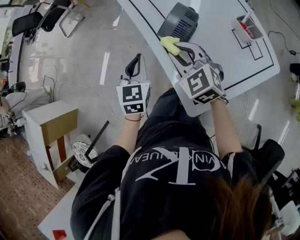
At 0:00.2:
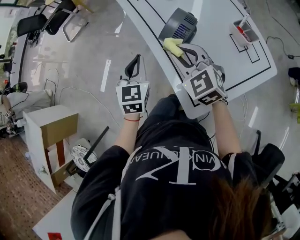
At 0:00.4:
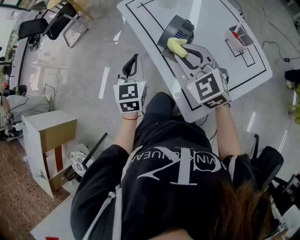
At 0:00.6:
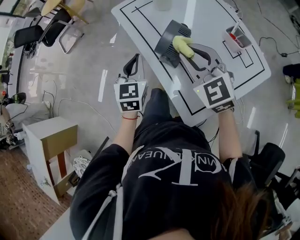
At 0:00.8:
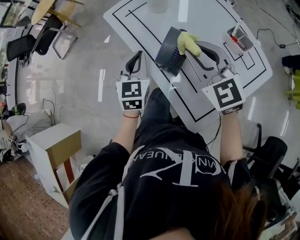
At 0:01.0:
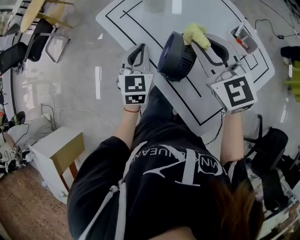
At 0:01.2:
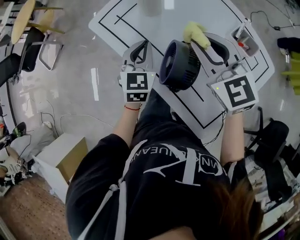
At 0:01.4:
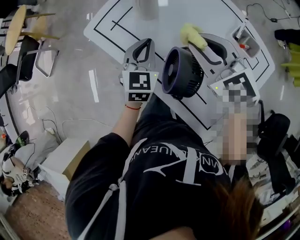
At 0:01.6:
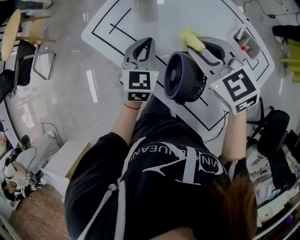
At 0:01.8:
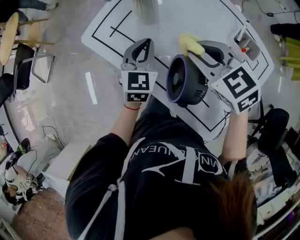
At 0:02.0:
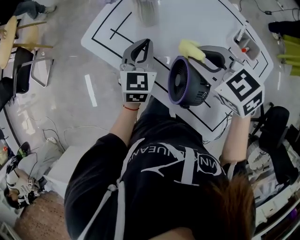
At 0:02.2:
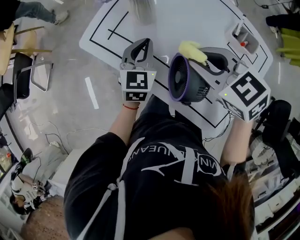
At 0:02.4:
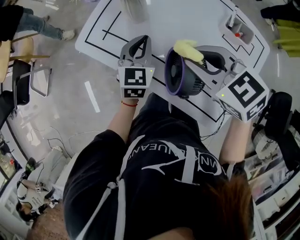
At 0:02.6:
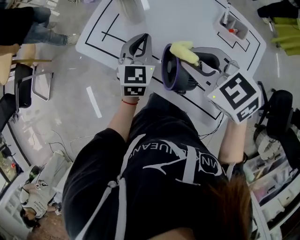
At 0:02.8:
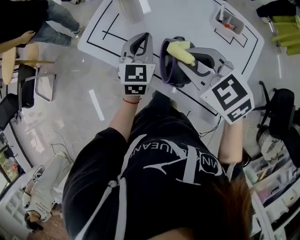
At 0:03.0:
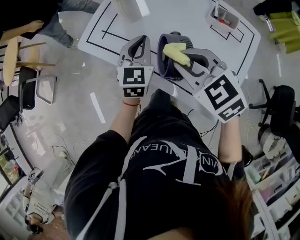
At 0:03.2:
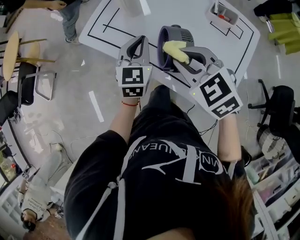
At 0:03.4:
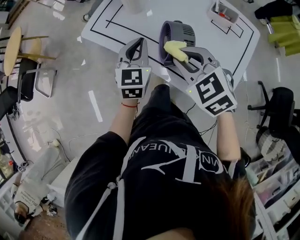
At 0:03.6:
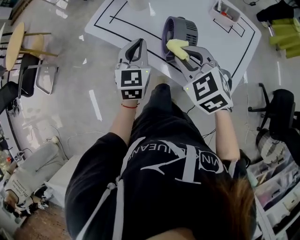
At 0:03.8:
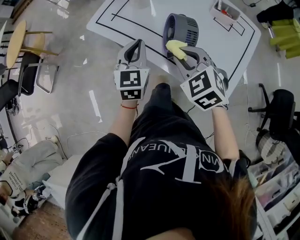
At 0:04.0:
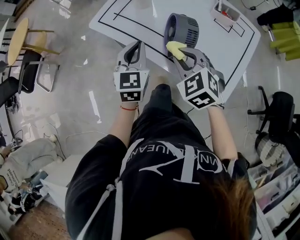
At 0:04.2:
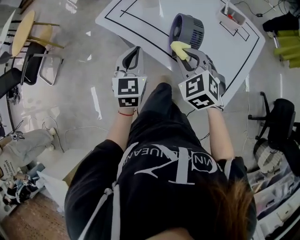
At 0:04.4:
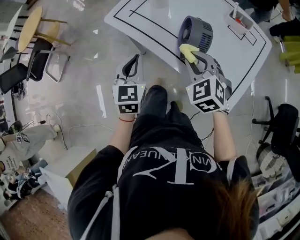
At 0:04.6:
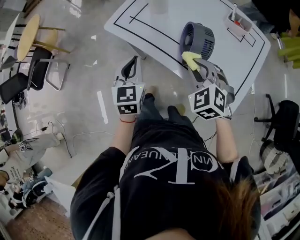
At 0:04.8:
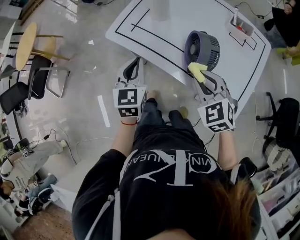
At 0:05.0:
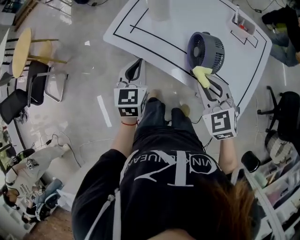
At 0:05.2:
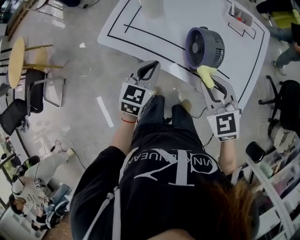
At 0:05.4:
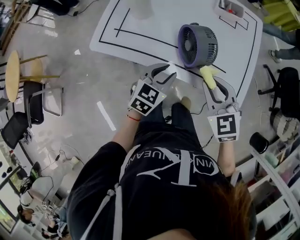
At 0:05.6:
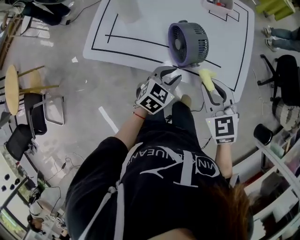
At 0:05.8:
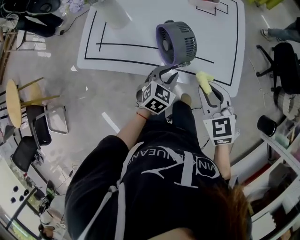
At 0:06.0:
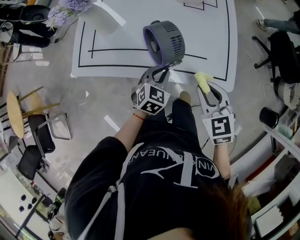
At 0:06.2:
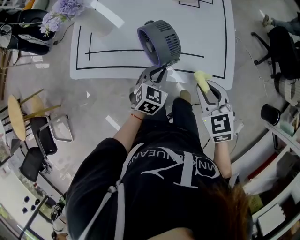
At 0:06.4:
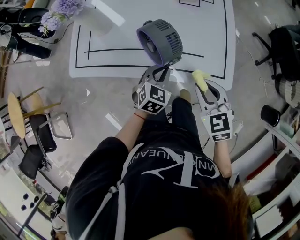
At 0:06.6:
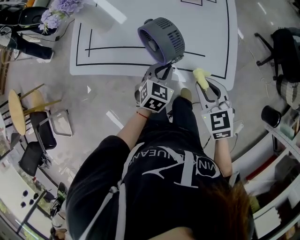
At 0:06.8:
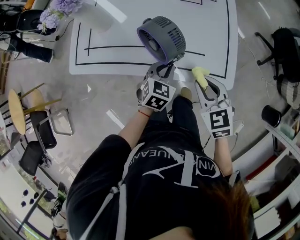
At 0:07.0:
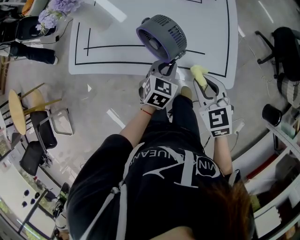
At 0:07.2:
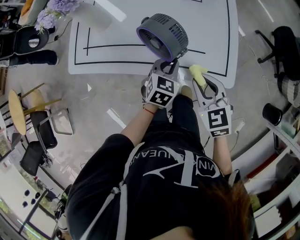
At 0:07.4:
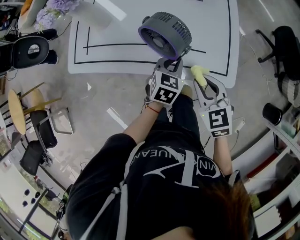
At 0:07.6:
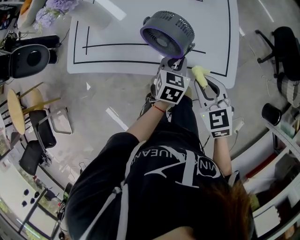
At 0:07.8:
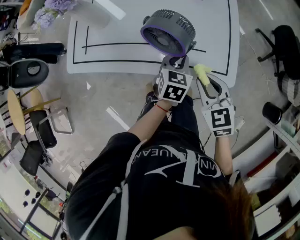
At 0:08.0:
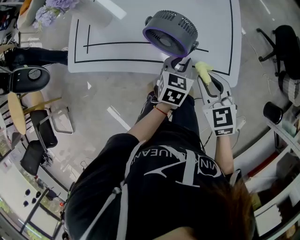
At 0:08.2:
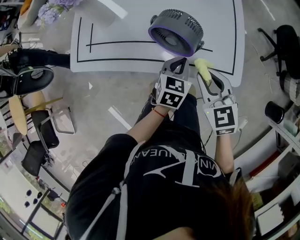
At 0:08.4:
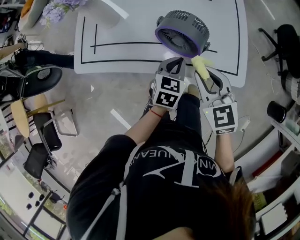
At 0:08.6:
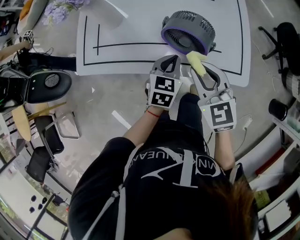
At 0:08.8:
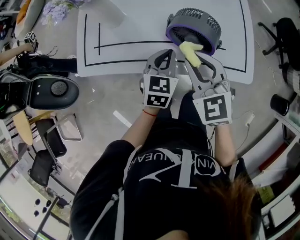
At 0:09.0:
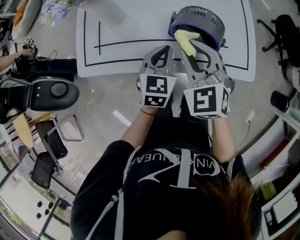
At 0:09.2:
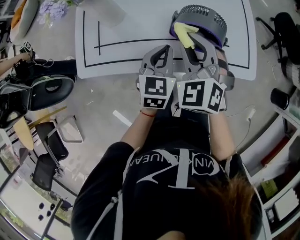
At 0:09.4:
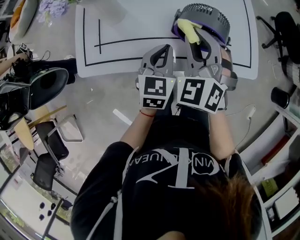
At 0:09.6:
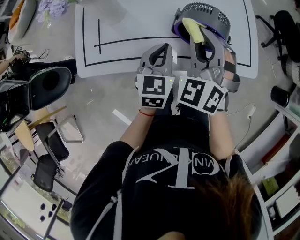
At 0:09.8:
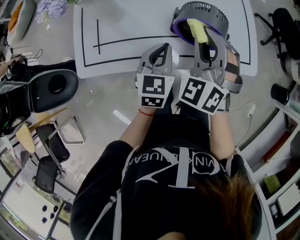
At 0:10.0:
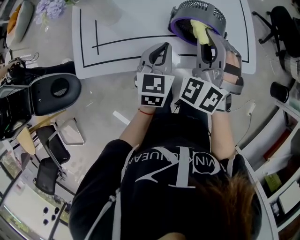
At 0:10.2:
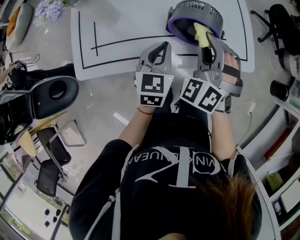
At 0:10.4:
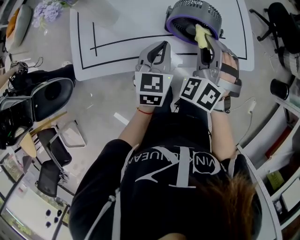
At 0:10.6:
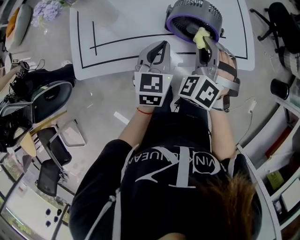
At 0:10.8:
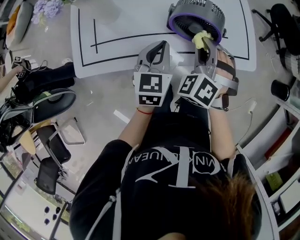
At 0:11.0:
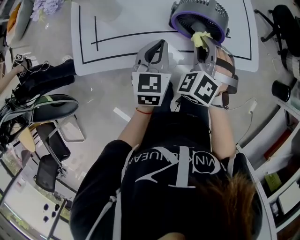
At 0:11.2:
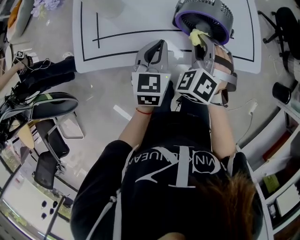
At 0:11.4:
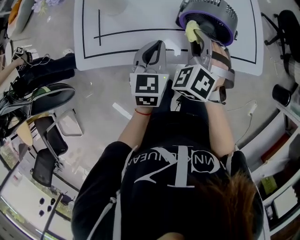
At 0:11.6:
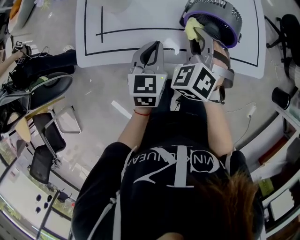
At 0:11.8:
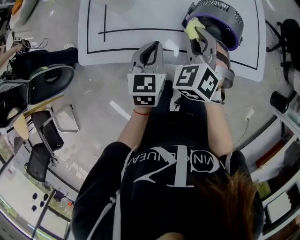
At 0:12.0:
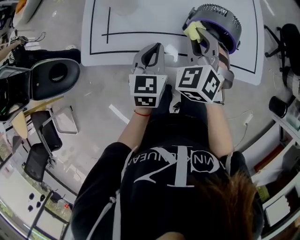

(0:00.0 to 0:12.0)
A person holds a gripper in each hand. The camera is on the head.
0:00.0 - 0:01.6: Both grippers travel together forward and to the right, roughly 25 cm. The left gripper turns by approximately 30 degrees. Meanwhile the right gripper changes its angle by about 30 degrees.
0:01.6 - 0:03.0: The left gripper shifts some 5 cm backward. The right gripper goes roughly 10 cm backward.
0:03.0 - 0:04.4: The right gripper heads backward and downward, covering about 10 cm, and turns by some 20 degrees. The left gripper moves backward and to the left, some 20 cm.
0:04.4 - 0:06.0: The right gripper moves some 10 cm, and swivels about 50 degrees. The left gripper ends up some 20 cm from where it was, and turns by approximately 60 degrees.
0:06.0 - 0:07.6: The left gripper heads to the right, covering approximately 10 cm.
0:07.6 - 0:09.0: The right gripper heads to the left and forward, covering approximately 20 cm, and changes its angle by approximately 20 degrees. Meanwhile the left gripper travels to the left by some 15 cm.
0:09.0 - 0:10.4: The right gripper is displaced to the right by about 5 cm, and changes its angle by some 40 degrees.
0:10.4 - 0:12.0: The two grippers go about 10 cm to the left. The right gripper swivels some 20 degrees.

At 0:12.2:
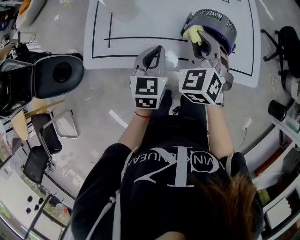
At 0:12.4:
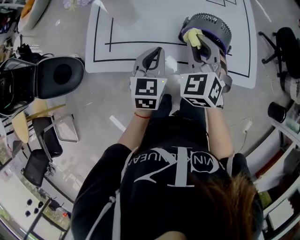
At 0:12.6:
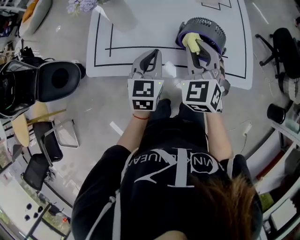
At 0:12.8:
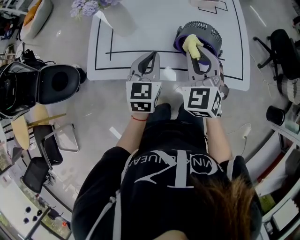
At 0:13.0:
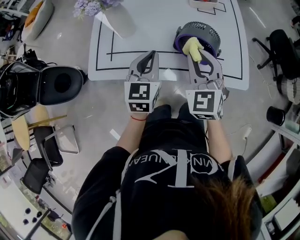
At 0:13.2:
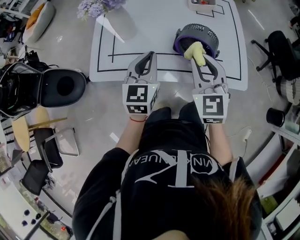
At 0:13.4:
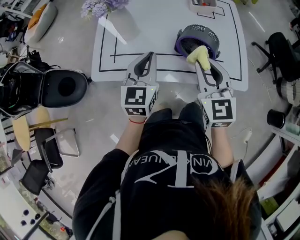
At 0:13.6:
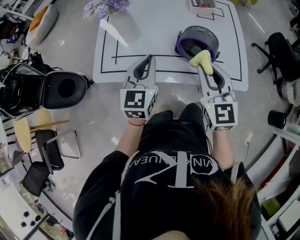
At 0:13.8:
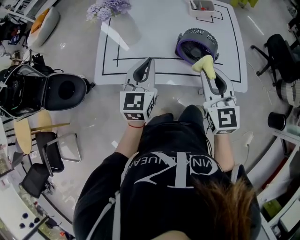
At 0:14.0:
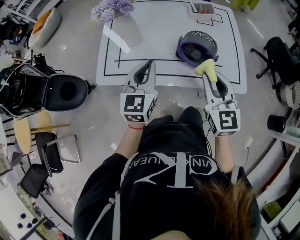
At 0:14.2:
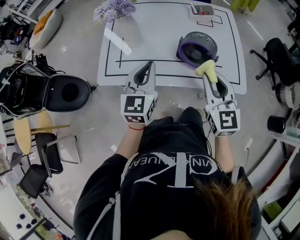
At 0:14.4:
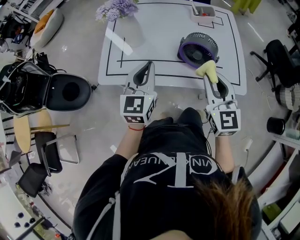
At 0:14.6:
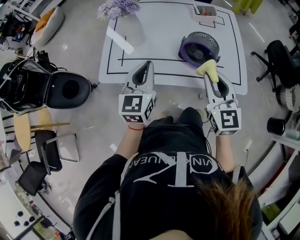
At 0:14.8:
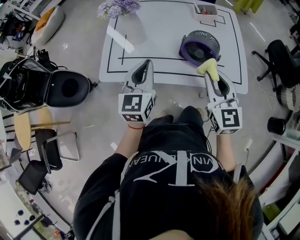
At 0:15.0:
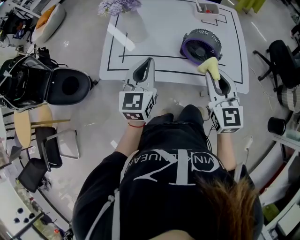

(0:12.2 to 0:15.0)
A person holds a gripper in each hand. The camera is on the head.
0:12.2 - 0:13.6: The left gripper shifts approximately 10 cm upward. Meanwhile the right gripper goes some 10 cm backward, upward and to the right, and turns by some 40 degrees.
0:13.6 - 0:15.0: There are only small adjustments of the grippers.

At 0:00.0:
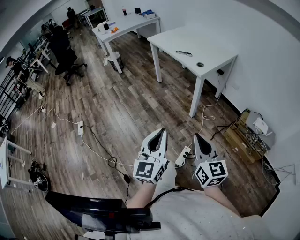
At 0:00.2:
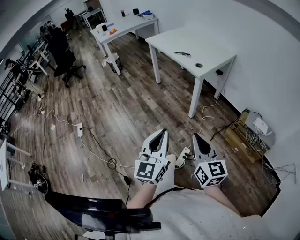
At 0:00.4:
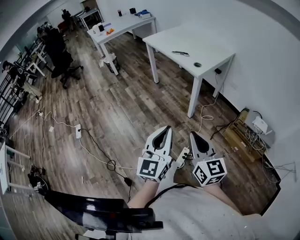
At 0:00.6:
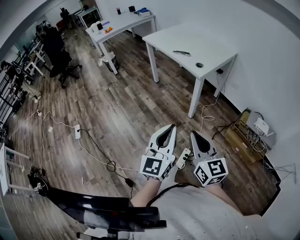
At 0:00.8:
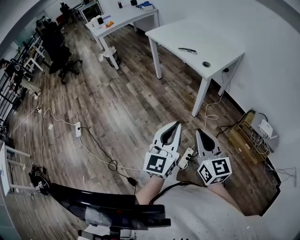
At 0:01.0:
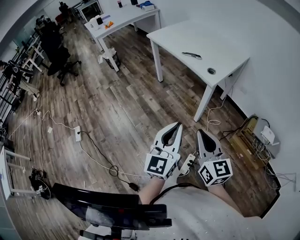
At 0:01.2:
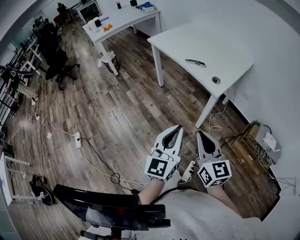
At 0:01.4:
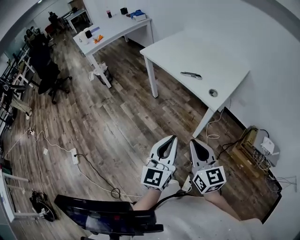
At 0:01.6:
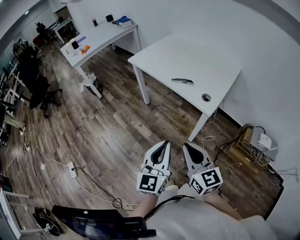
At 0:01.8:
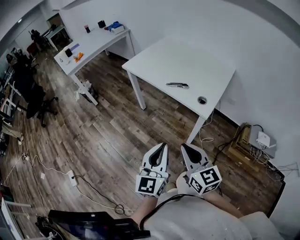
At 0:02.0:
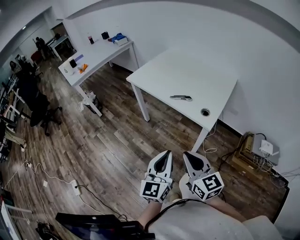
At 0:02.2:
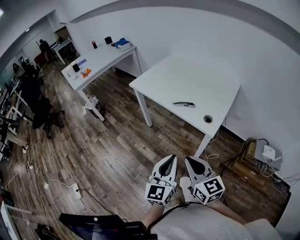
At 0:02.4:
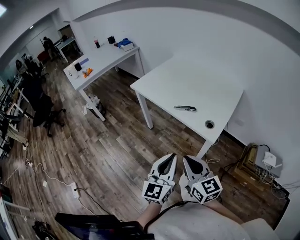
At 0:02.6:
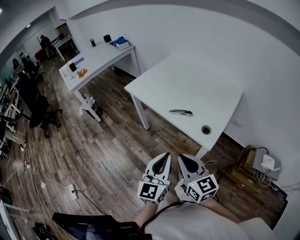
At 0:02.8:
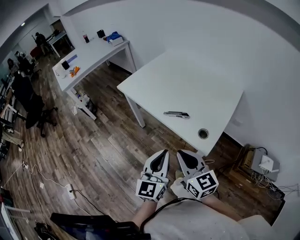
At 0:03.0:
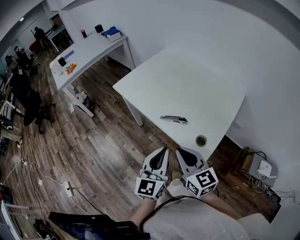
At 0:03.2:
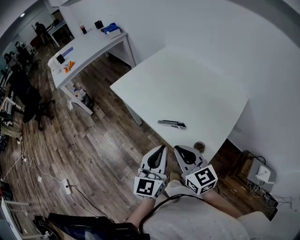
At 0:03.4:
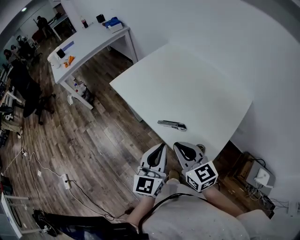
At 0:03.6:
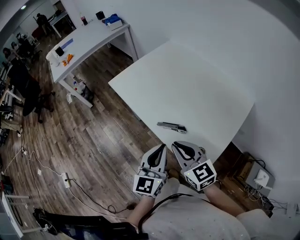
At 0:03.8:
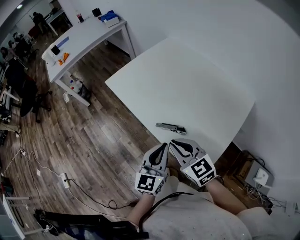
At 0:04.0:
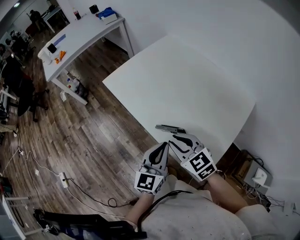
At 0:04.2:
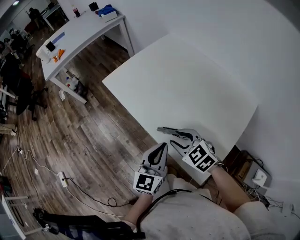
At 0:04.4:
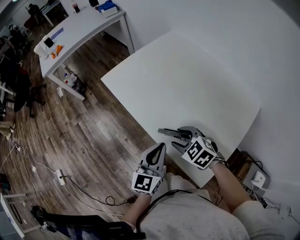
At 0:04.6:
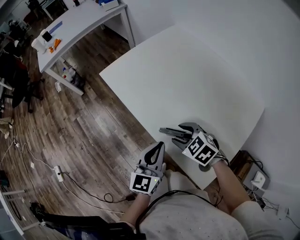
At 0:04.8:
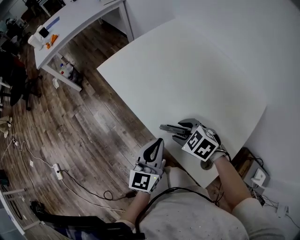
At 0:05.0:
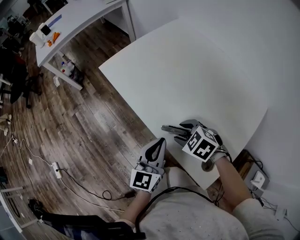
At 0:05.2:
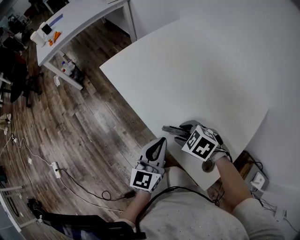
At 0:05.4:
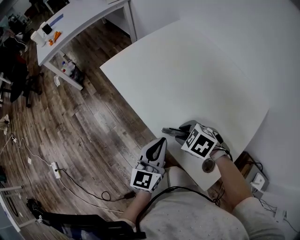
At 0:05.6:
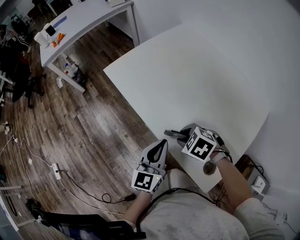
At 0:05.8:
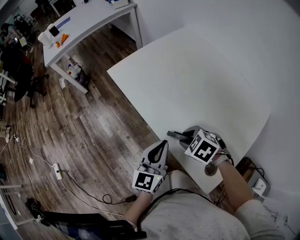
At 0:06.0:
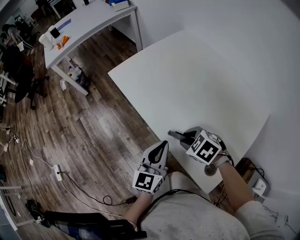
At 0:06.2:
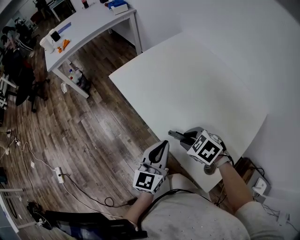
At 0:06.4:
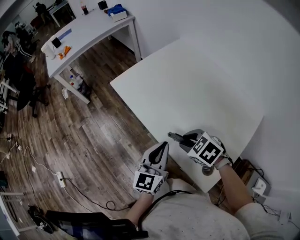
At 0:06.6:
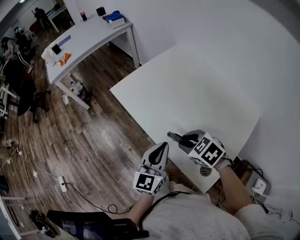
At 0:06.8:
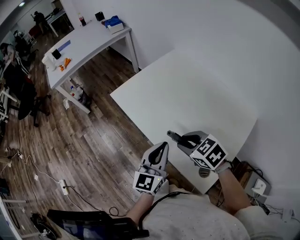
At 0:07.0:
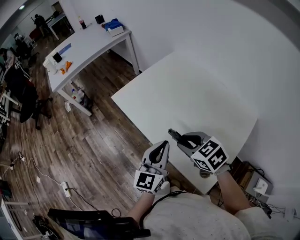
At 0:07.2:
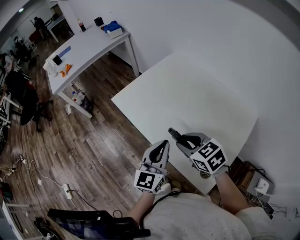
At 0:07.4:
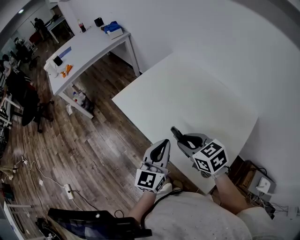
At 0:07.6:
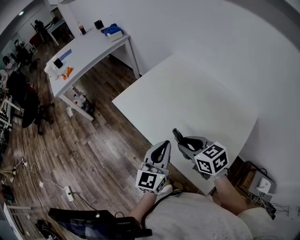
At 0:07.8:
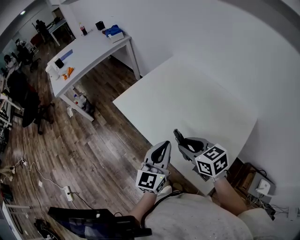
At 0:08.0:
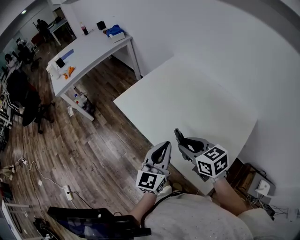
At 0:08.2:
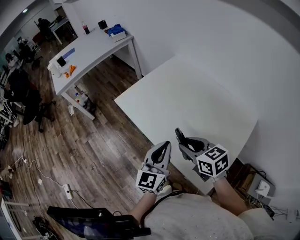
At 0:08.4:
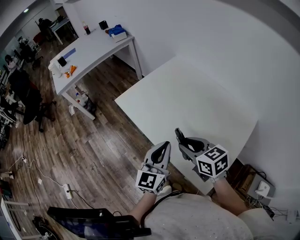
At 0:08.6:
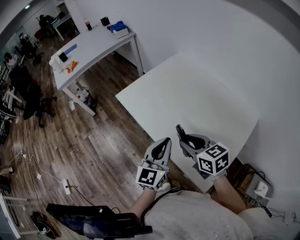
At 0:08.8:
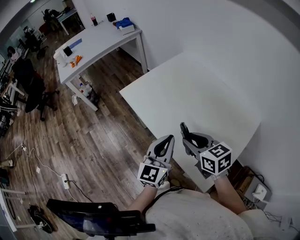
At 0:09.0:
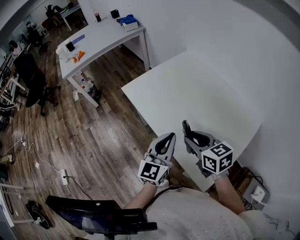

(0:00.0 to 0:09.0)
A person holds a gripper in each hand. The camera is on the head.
0:00.0 - 0:01.6: The grippers both shift forward by roughly 35 cm.
0:01.6 - 0:03.0: Both grippers travel together forward, about 25 cm.
0:03.0 - 0:04.4: The two grippers go roughly 20 cm forward and downward. The right gripper angles its fingers downward, by roughly 40 degrees, and opens its fingers.
0:04.4 - 0:06.0: The grippers make only small movements.
0:06.0 - 0:07.6: Both grippers travel together upward, some 15 cm. The right gripper tips its fingers upward by approximately 30 degrees.
0:07.6 - 0:09.0: There are only small adjustments of the grippers.
